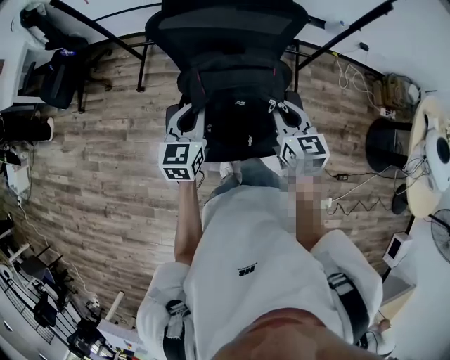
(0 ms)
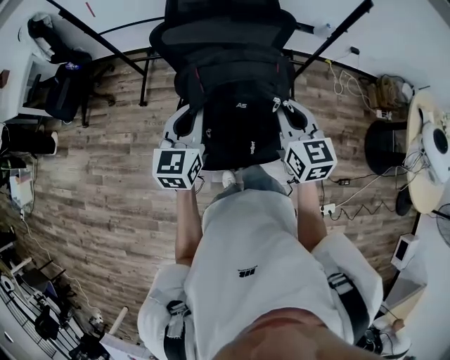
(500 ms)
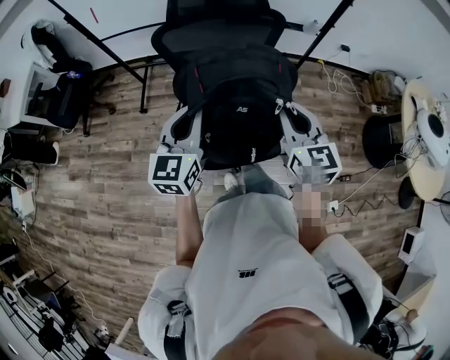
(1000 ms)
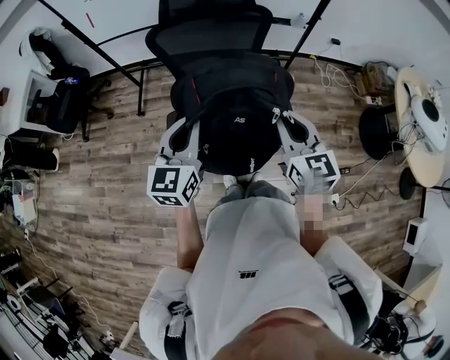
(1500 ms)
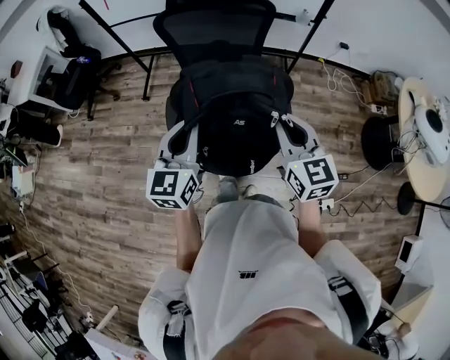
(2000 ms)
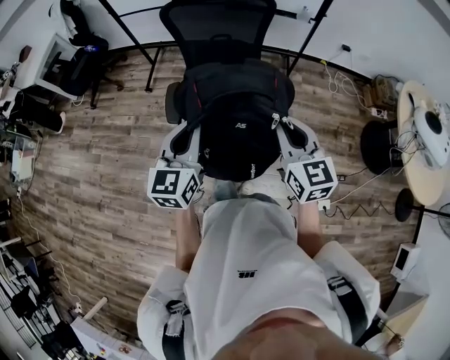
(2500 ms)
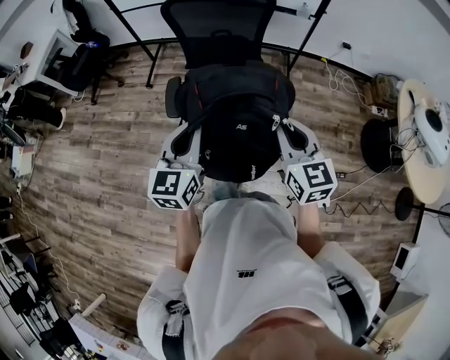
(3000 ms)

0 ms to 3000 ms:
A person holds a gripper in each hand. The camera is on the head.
0 ms to 1500 ms: Both grippers travel together backward and upward, roughly 20 cm.
1500 ms to 3000 ms: Both grippers travel together backward, some 20 cm.

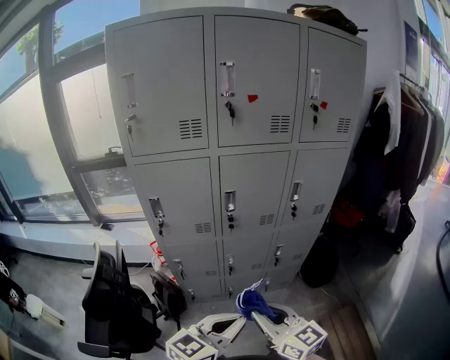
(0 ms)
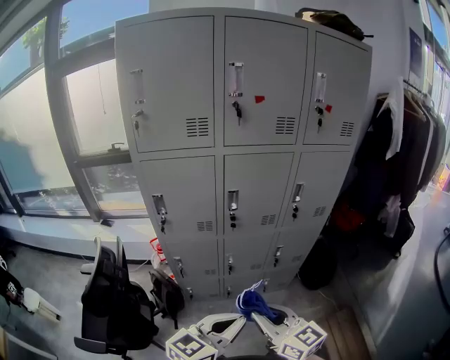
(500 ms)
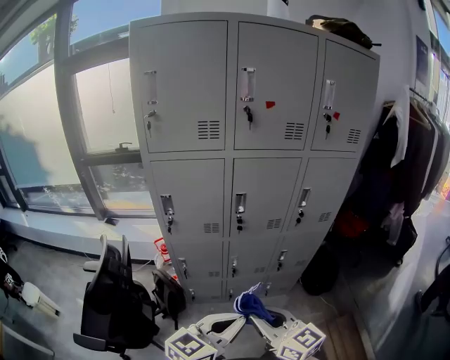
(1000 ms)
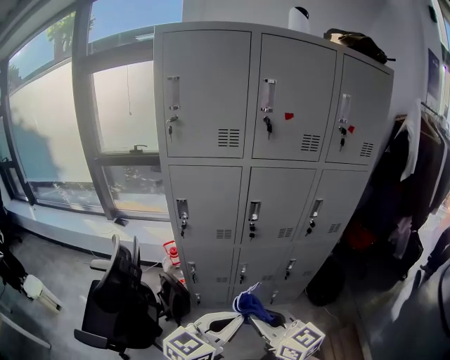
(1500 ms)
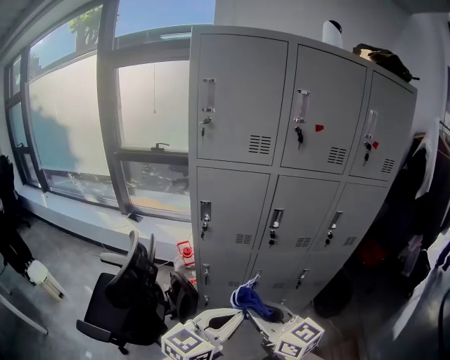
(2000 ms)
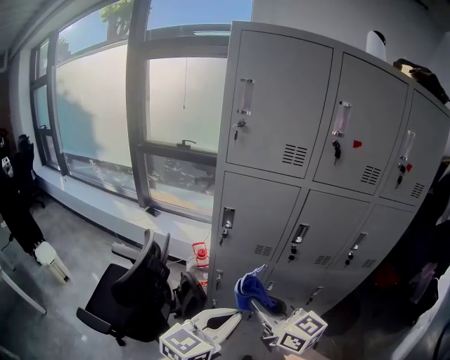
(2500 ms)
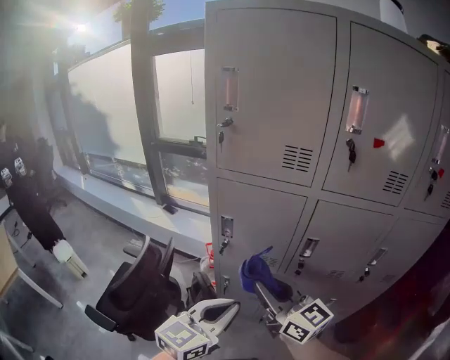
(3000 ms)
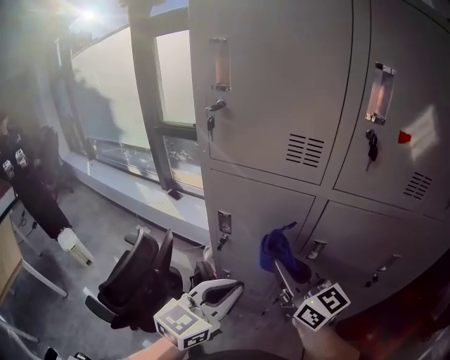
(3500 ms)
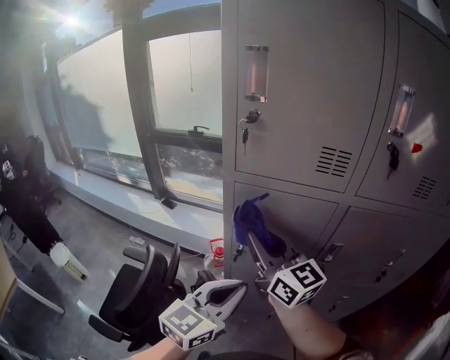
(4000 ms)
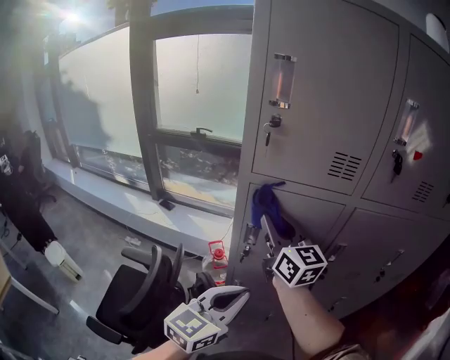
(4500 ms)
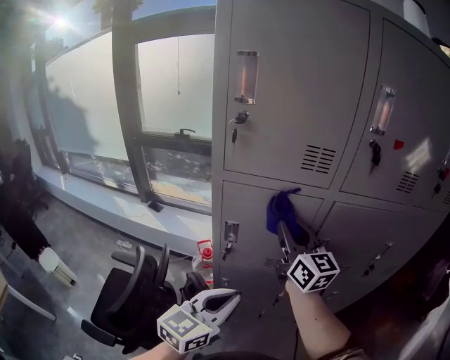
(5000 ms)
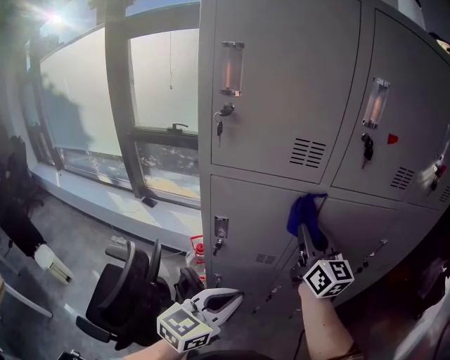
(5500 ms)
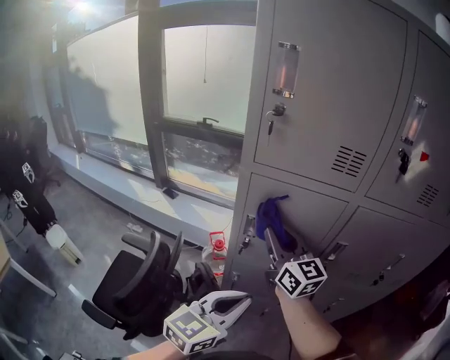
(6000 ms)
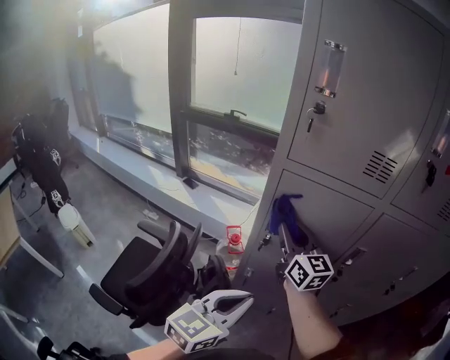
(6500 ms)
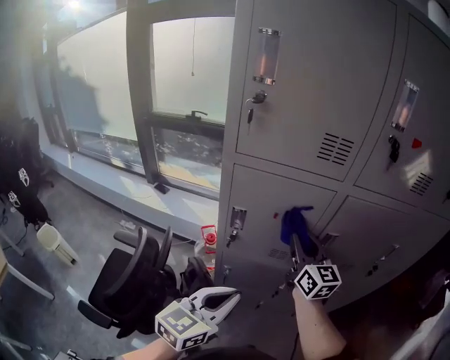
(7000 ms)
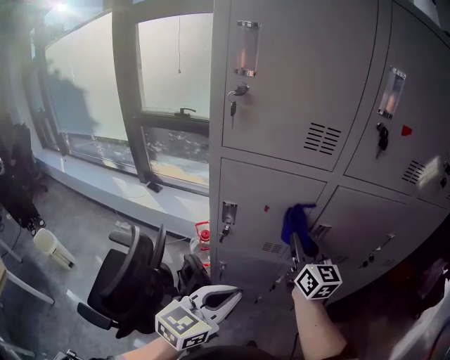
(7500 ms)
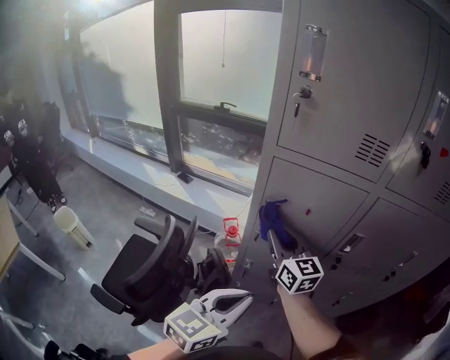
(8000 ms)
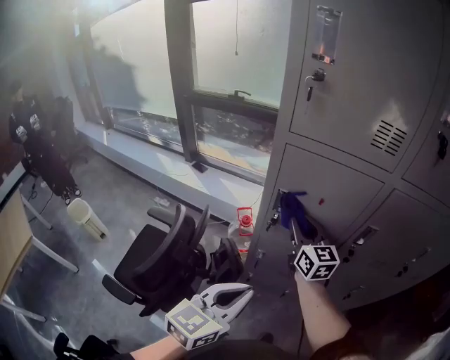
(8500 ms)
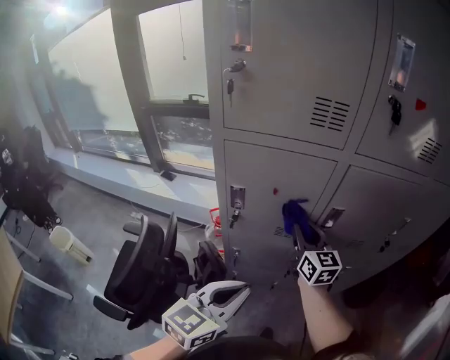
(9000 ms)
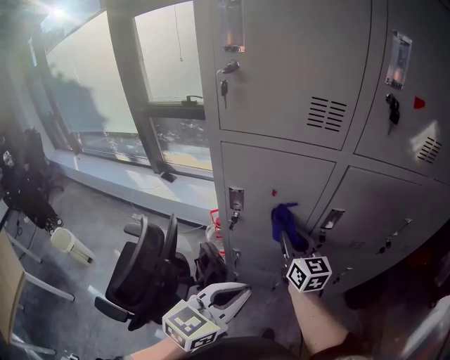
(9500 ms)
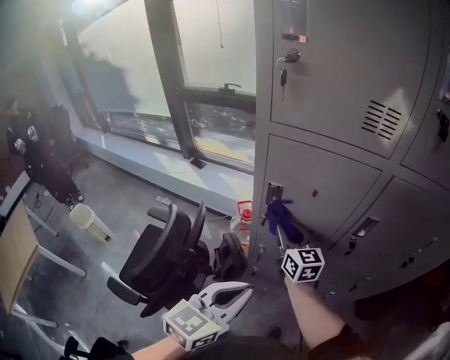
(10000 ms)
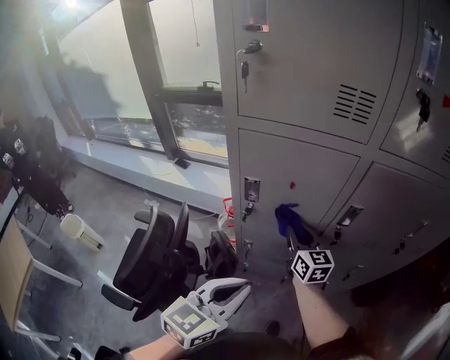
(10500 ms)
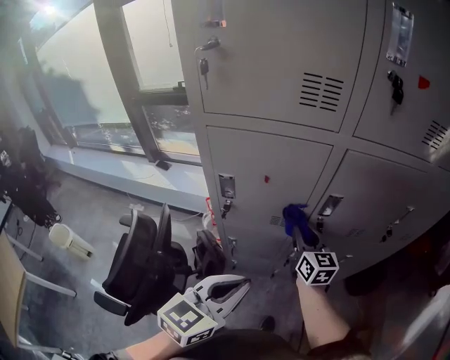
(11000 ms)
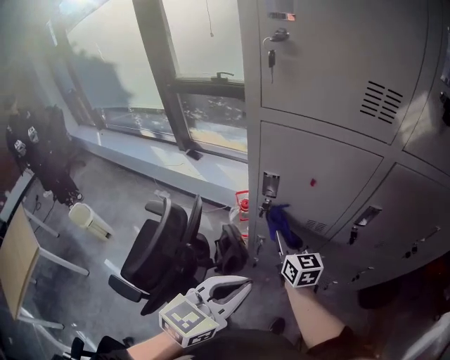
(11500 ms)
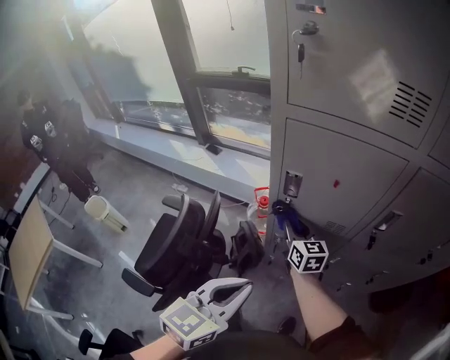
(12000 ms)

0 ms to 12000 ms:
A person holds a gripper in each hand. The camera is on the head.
0 ms to 2000 ms: Both grippers travel together to the left, about 10 cm.
2000 ms to 4000 ms: The grippers both shift forward by about 30 cm.
4000 ms to 6000 ms: The right gripper goes approximately 5 cm downward, and reaches about 20 cm to the right, then returns, while the left gripper moves roughly 5 cm.
6000 ms to 8000 ms: The right gripper moves downward, about 10 cm, and travels to the right and back again, roughly 15 cm each way.
8000 ms to 10000 ms: The right gripper is displaced downward by roughly 10 cm, and travels to the right and back again, roughly 15 cm each way.
10000 ms to 12000 ms: The left gripper moves about 5 cm to the right and comes back, while the right gripper is displaced downward by roughly 5 cm, and travels to the right and back again, some 20 cm each way.

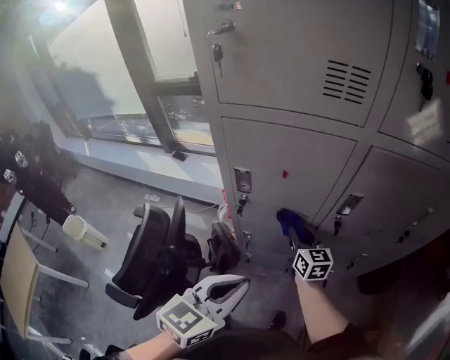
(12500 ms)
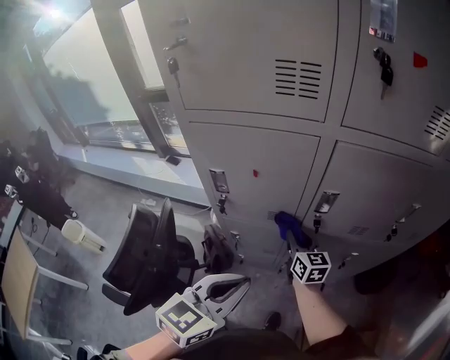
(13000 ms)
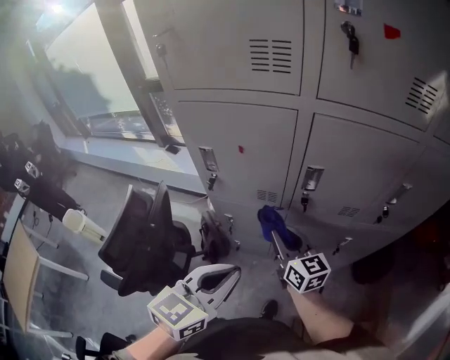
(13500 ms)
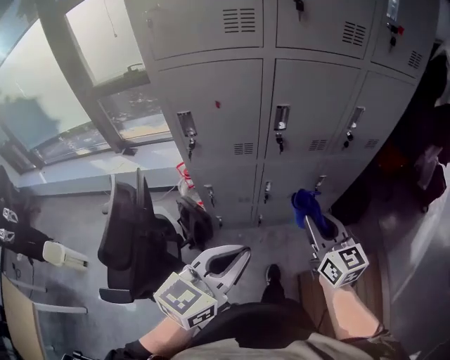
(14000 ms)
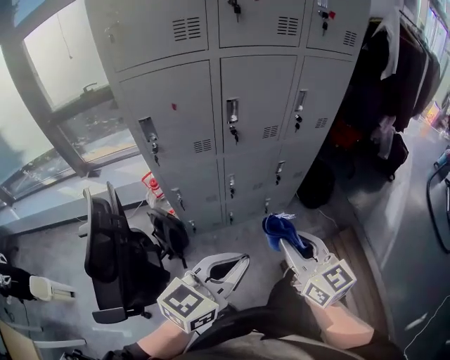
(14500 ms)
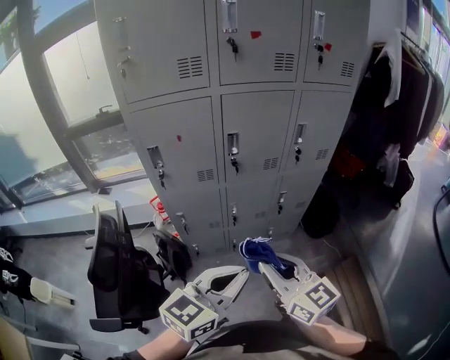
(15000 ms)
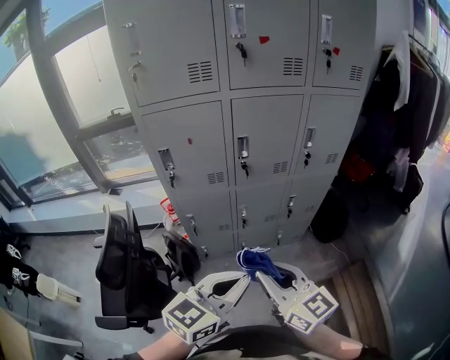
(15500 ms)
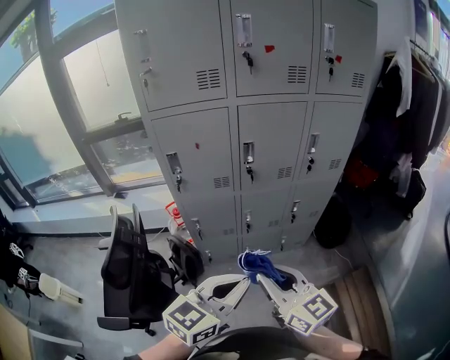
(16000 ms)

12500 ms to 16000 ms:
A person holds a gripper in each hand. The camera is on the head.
12500 ms to 14500 ms: The right gripper ends up about 50 cm from where it was, while the left gripper shifts by some 25 cm, and swivels roughly 30 degrees.
14500 ms to 16000 ms: The right gripper moves roughly 5 cm.

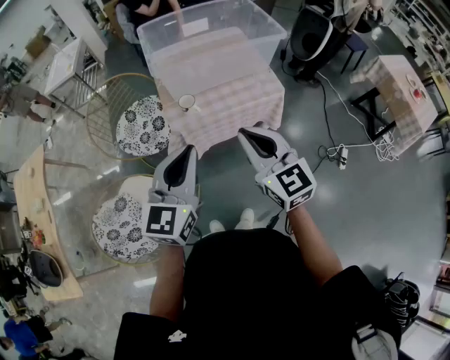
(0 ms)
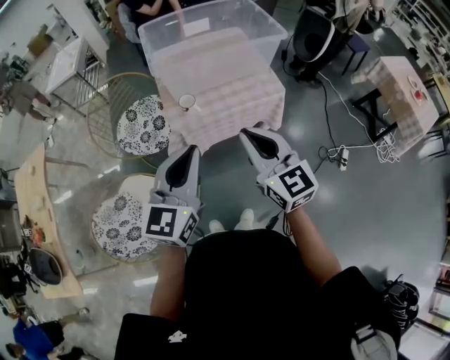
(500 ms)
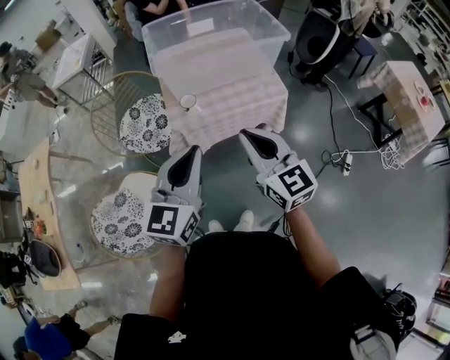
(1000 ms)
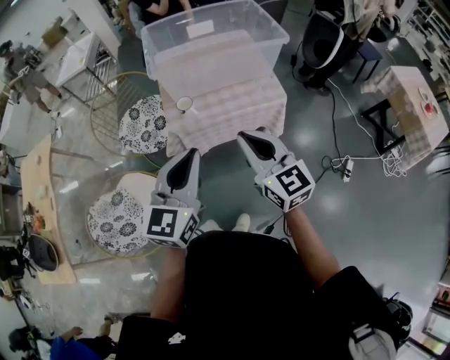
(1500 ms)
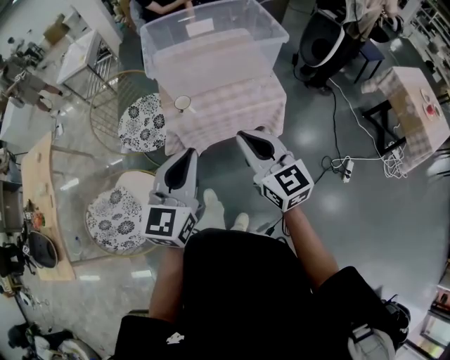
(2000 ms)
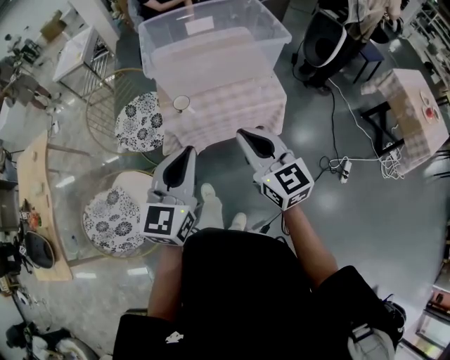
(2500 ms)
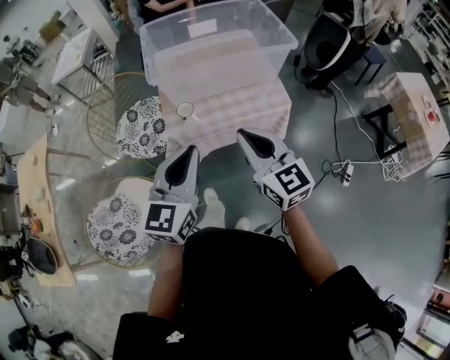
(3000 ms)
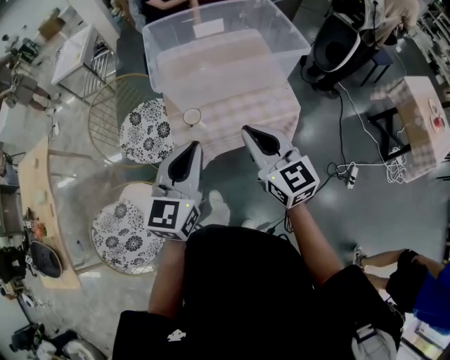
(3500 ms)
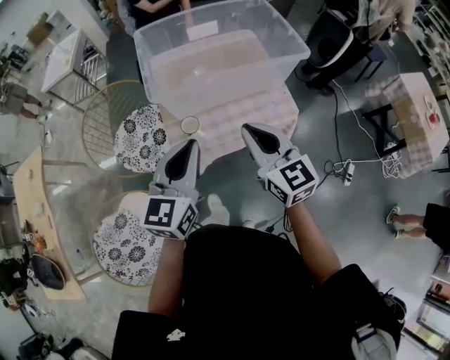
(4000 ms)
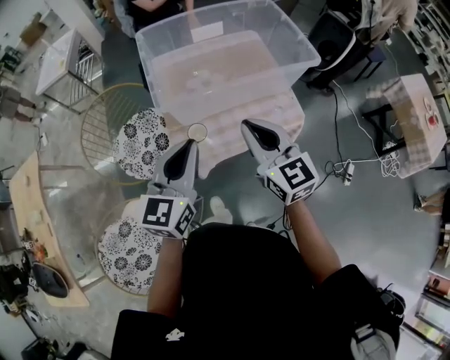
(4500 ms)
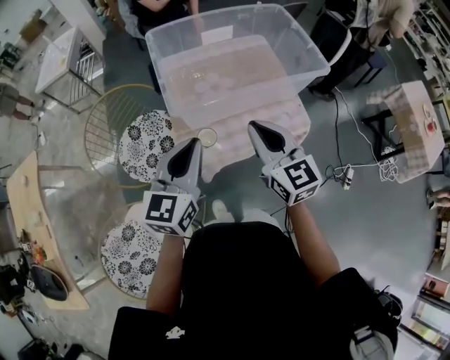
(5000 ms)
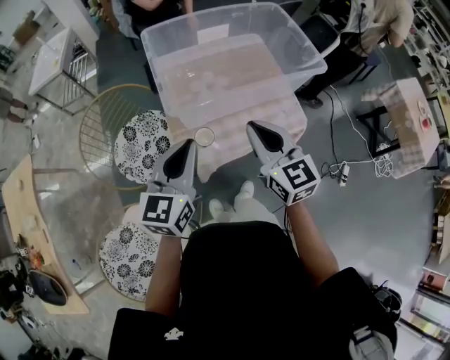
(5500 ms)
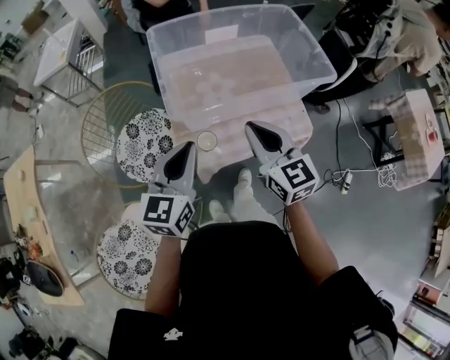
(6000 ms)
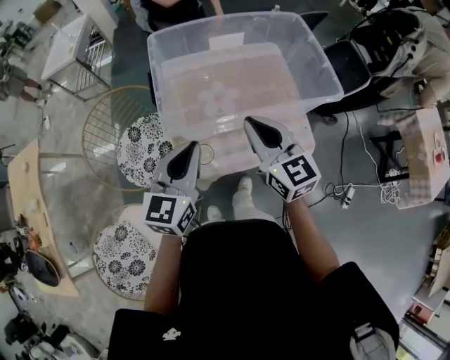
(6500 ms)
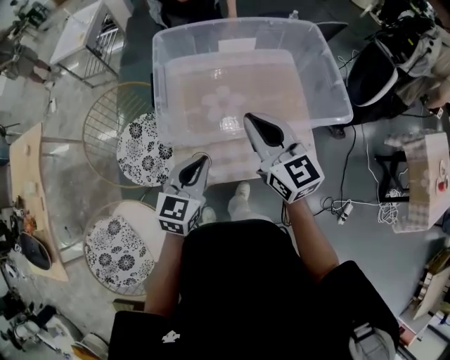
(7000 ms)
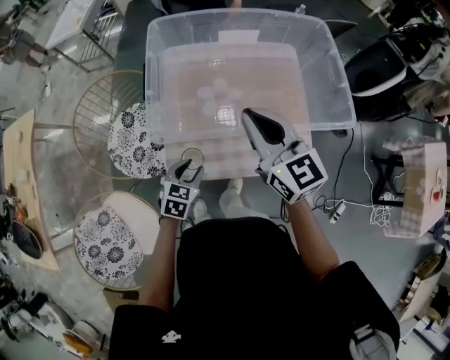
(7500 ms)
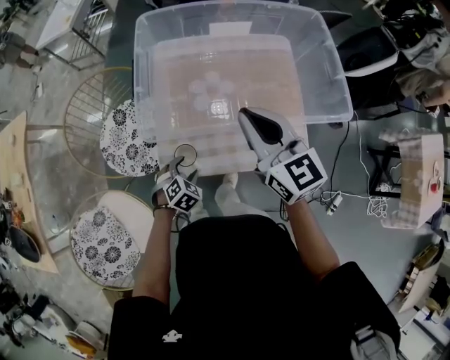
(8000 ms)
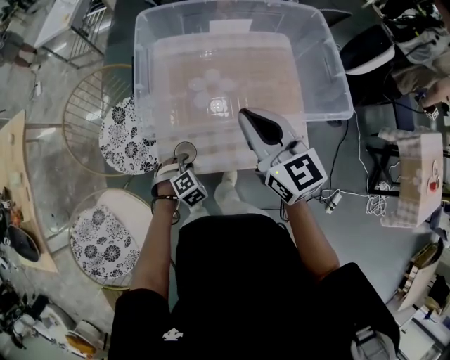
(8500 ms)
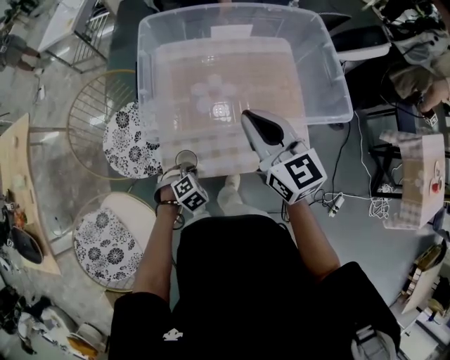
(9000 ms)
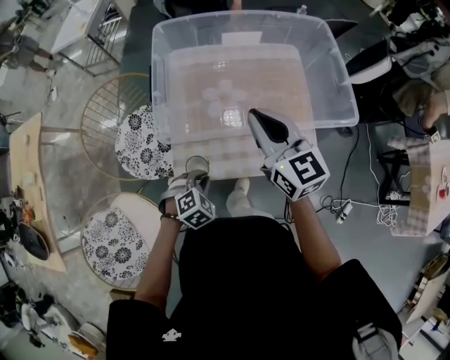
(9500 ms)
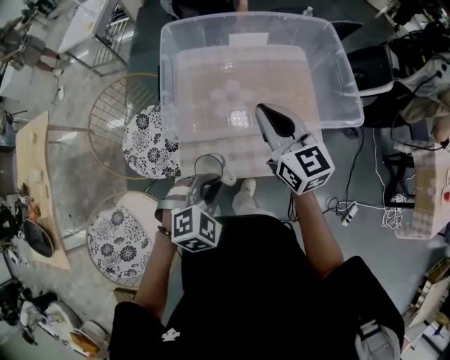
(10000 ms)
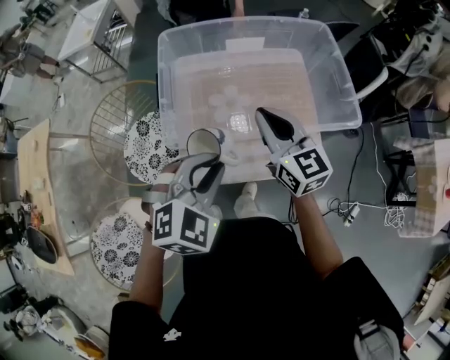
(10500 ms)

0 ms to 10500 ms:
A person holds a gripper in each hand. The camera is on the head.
0 ms to 2000 ms: The grippers both shift to the right by approximately 5 cm.
2000 ms to 4000 ms: The grippers both shift forward by roughly 20 cm.
4000 ms to 6500 ms: Both grippers move forward, approximately 15 cm.
6500 ms to 8500 ms: The right gripper moves forward, some 5 cm. Meanwhile the left gripper travels downward by approximately 35 cm, points its fingers approximately 60 degrees further downward, and opens.
8500 ms to 10500 ms: The left gripper heads upward, covering about 35 cm, and turns by about 30 degrees.
